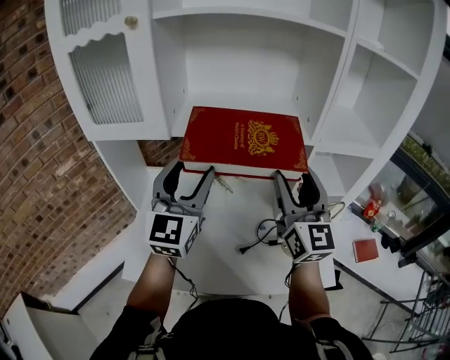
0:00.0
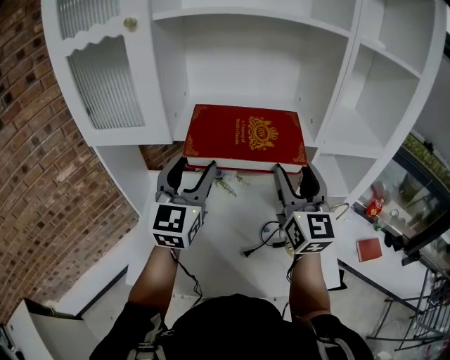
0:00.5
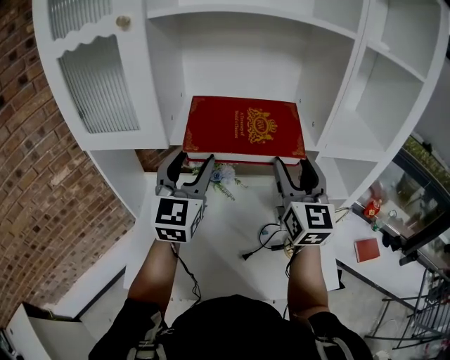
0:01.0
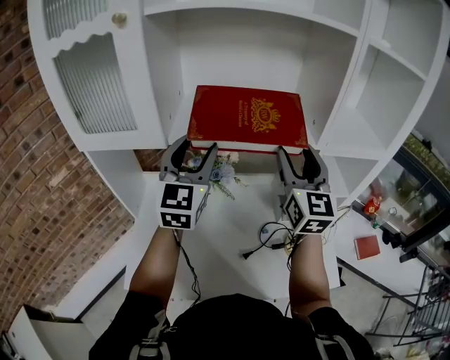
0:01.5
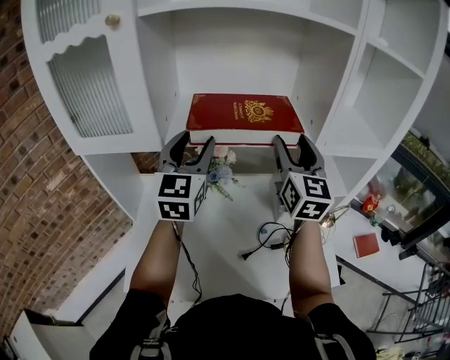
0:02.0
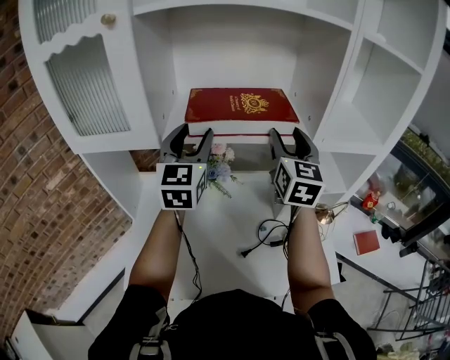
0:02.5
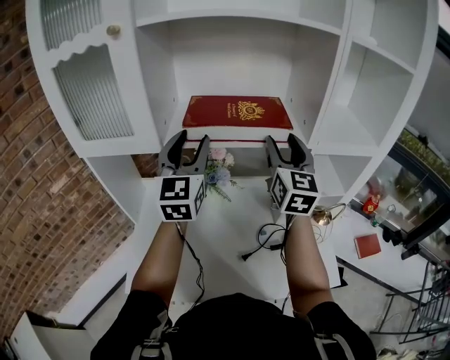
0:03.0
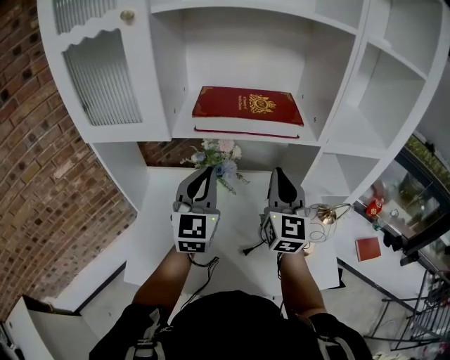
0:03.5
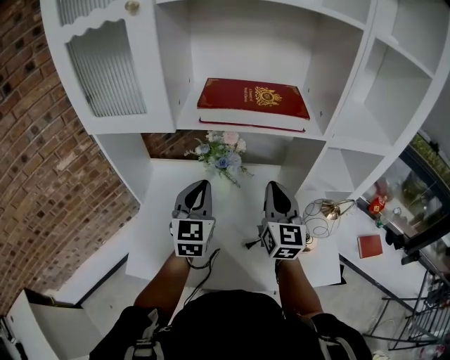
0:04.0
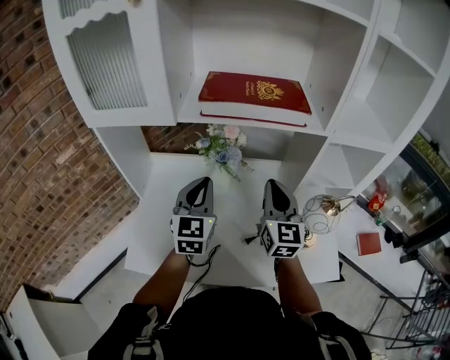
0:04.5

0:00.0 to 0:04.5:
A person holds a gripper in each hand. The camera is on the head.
0:00.0 to 0:02.0: The two grippers go roughly 15 cm forward.
0:02.0 to 0:04.5: The two grippers go roughly 20 cm downward and backward. The left gripper closes up, while the right gripper closes up.

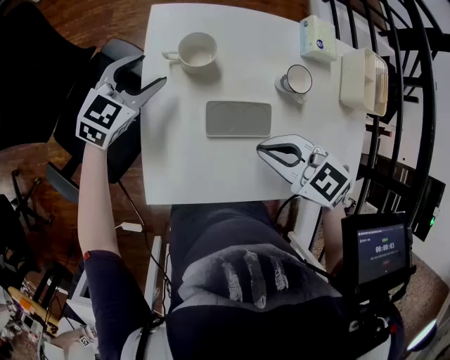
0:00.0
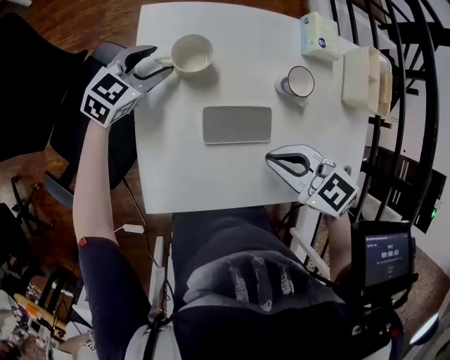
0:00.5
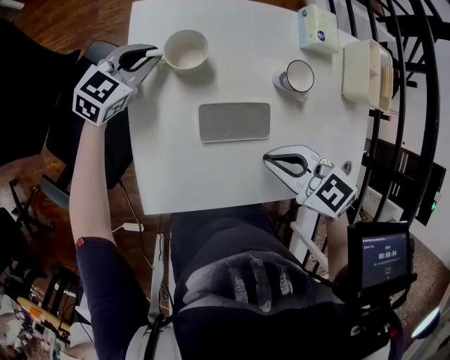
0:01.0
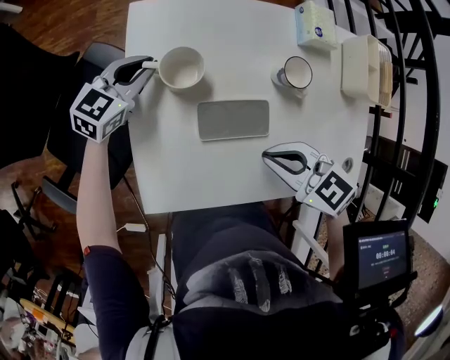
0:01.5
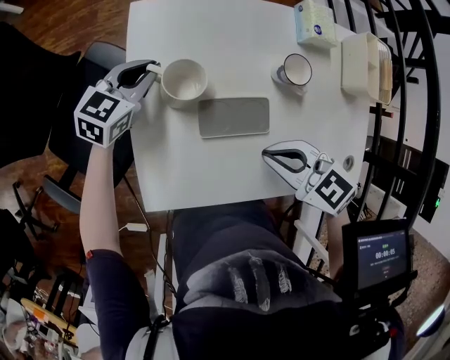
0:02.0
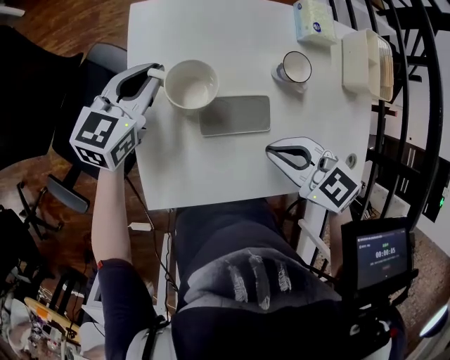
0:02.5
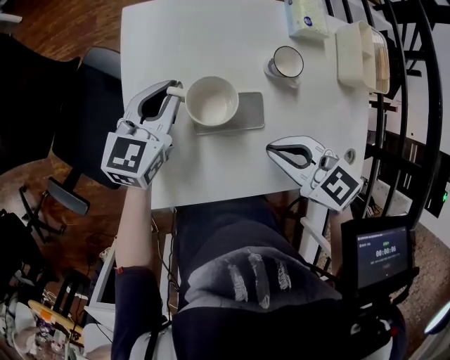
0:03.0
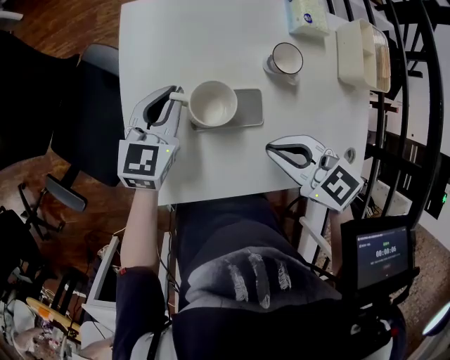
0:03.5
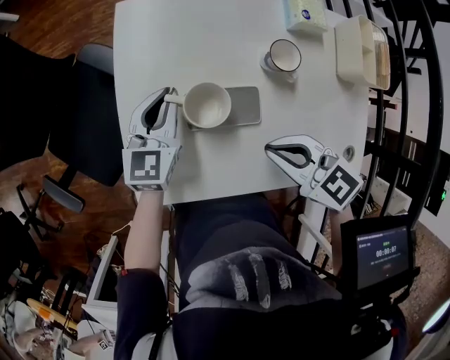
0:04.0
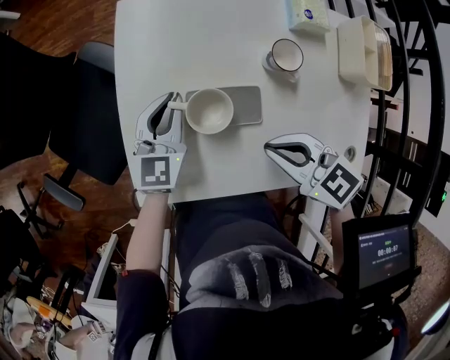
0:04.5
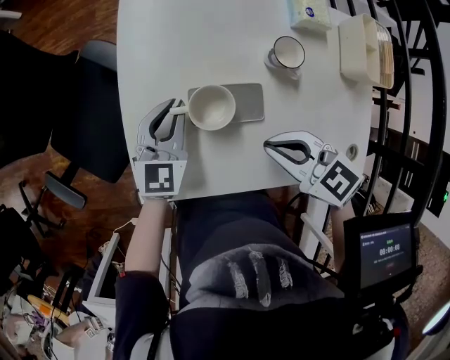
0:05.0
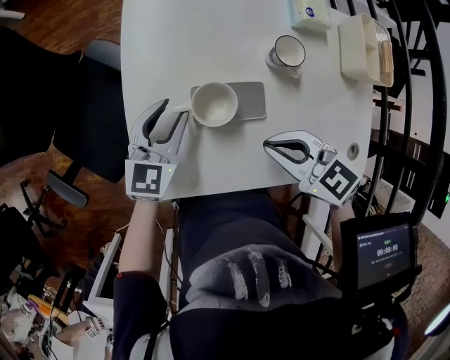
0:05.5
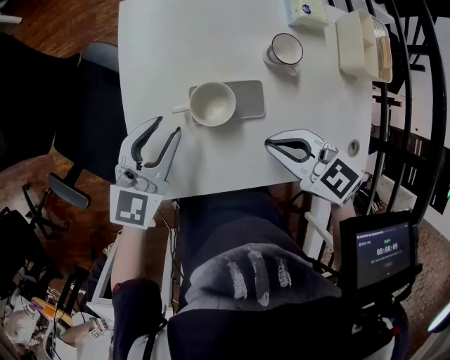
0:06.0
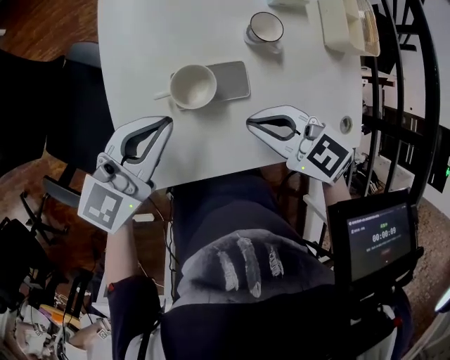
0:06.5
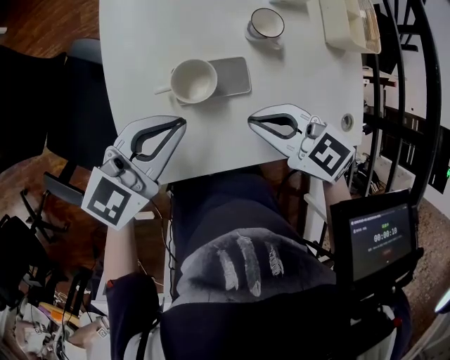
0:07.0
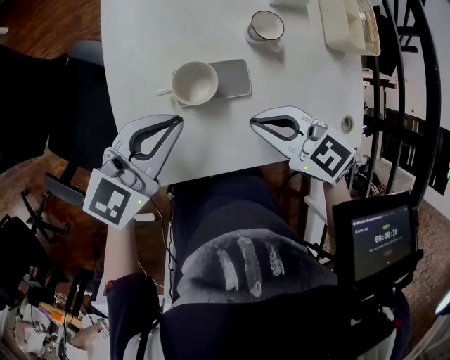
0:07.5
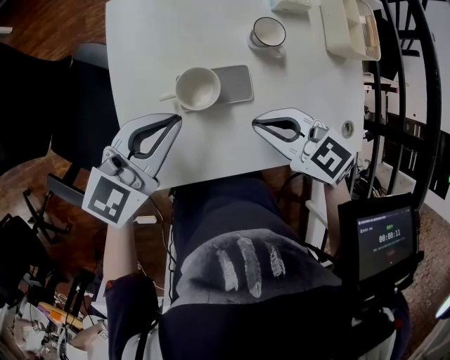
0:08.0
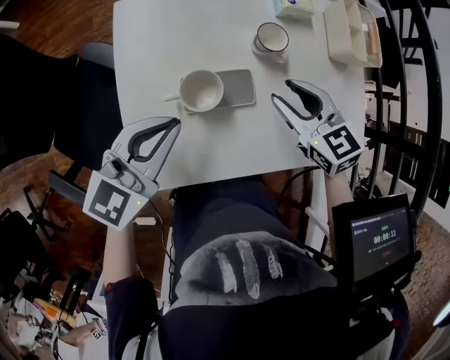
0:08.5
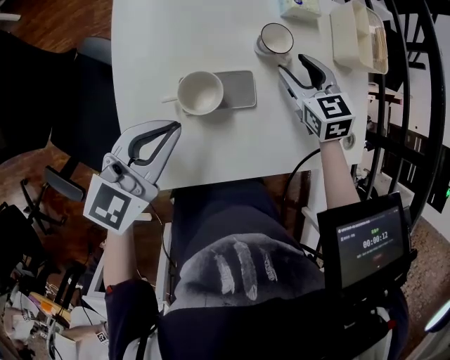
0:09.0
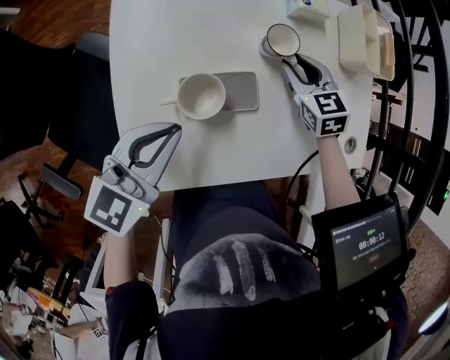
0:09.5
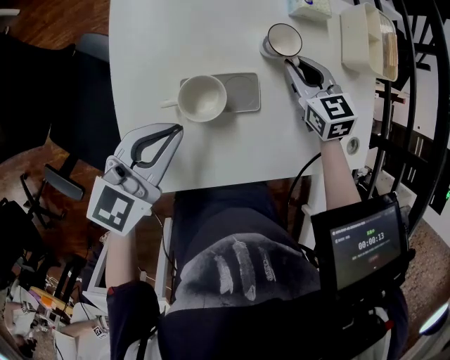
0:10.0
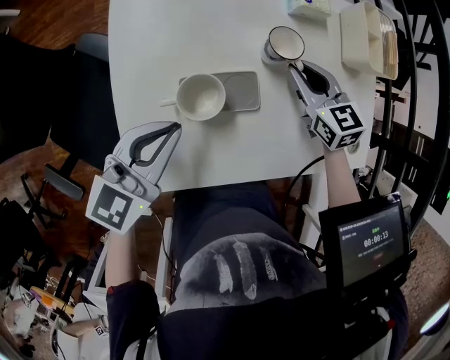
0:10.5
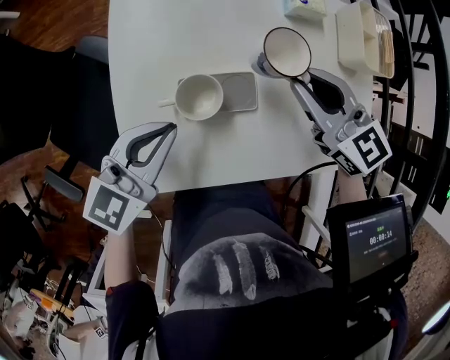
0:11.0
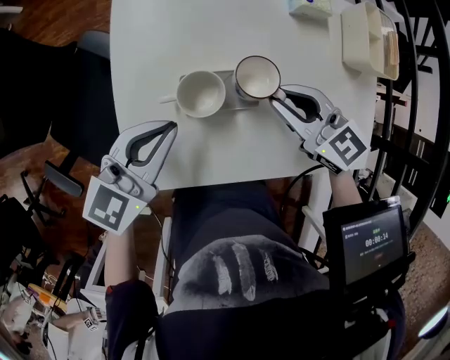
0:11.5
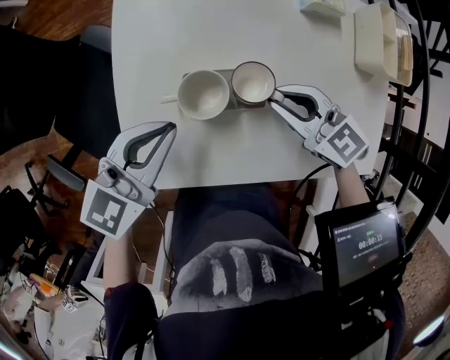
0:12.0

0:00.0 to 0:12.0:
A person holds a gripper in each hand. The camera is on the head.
0:00.0 to 0:02.0: The left gripper closes.
0:02.0 to 0:04.0: The left gripper travels backward by roughly 10 cm, and rotates about 30 degrees.
0:04.0 to 0:06.0: The left gripper heads backward, covering roughly 5 cm, and opens up.
0:06.0 to 0:08.0: The left gripper shifts by about 5 cm, and closes.
0:08.0 to 0:10.0: The right gripper heads forward and to the right, covering roughly 20 cm, changes its angle by some 30 degrees, and opens, then closes once more.
0:10.0 to 0:12.0: The right gripper shifts approximately 10 cm backward and to the left, reaches some 15 cm upward, then returns, and turns by some 30 degrees.

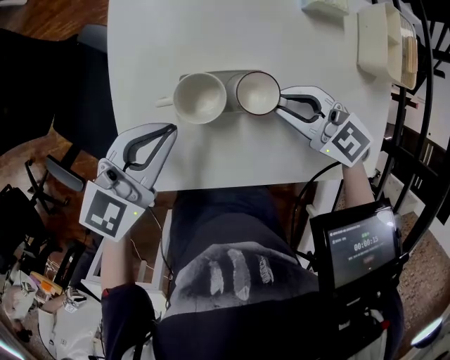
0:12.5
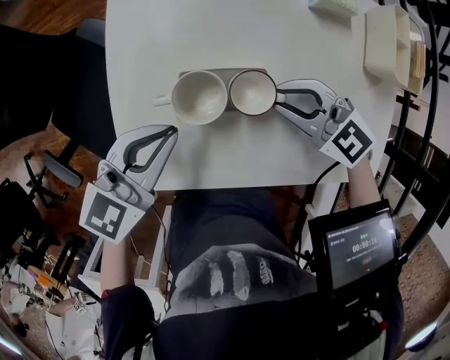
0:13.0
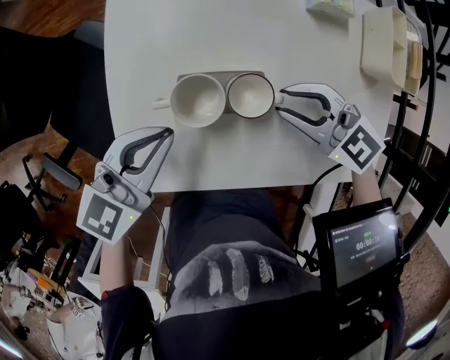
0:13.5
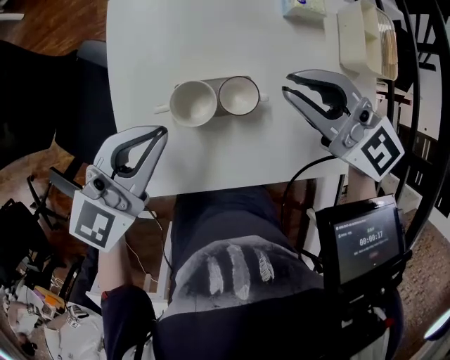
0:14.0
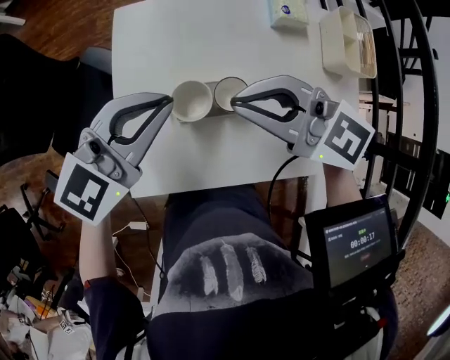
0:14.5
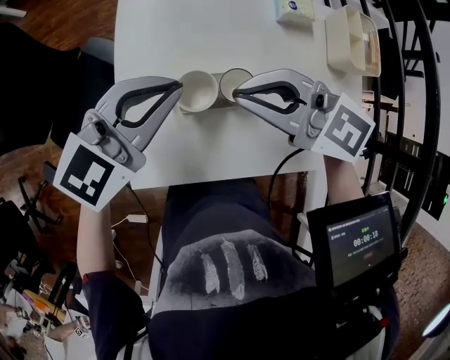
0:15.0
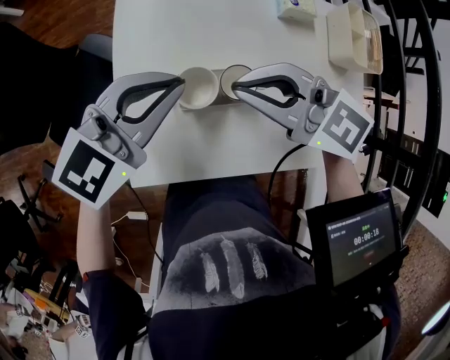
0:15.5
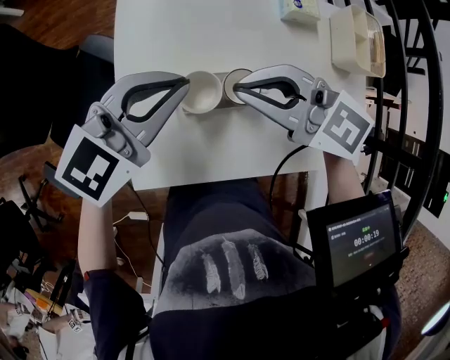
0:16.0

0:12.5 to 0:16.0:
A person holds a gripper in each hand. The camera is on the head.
0:12.5 to 0:14.5: The left gripper heads upward, covering about 10 cm. Meanwhile the right gripper is displaced upward by roughly 15 cm.
0:14.5 to 0:16.0: The grippers move only a little.

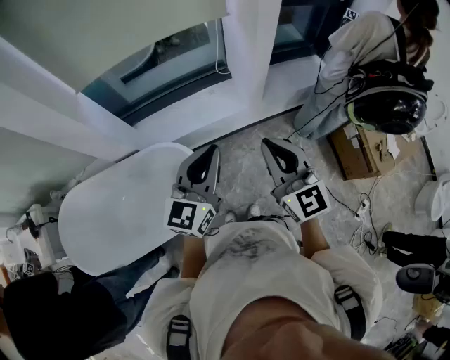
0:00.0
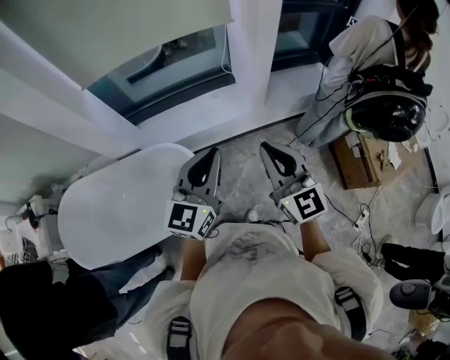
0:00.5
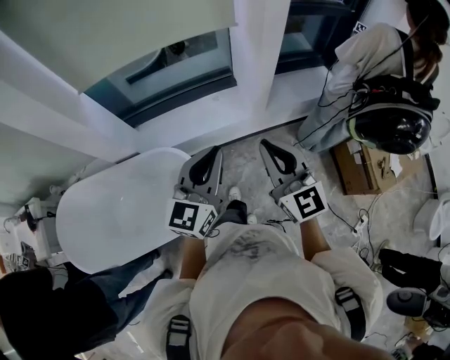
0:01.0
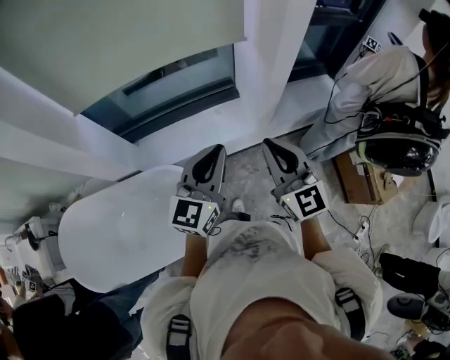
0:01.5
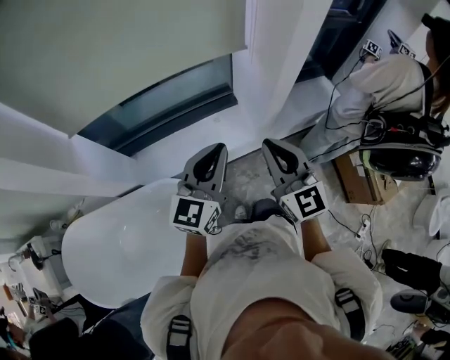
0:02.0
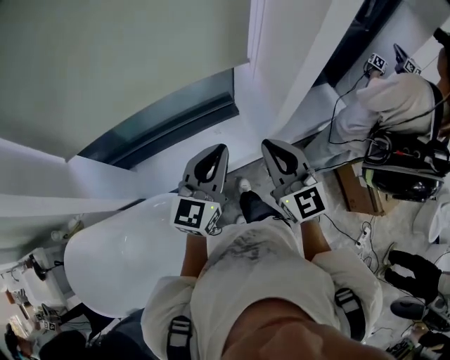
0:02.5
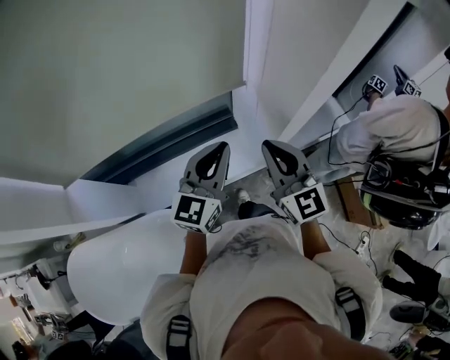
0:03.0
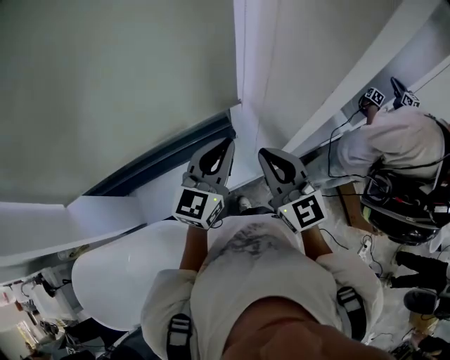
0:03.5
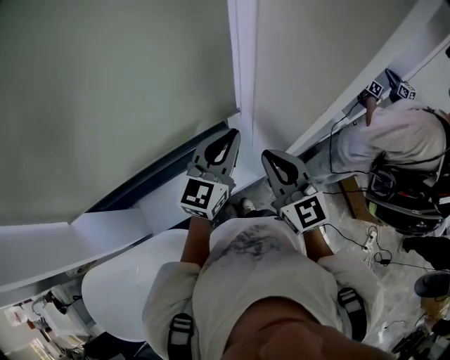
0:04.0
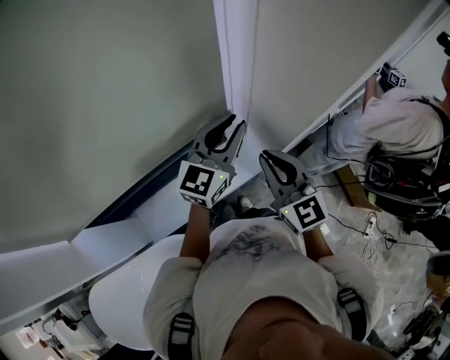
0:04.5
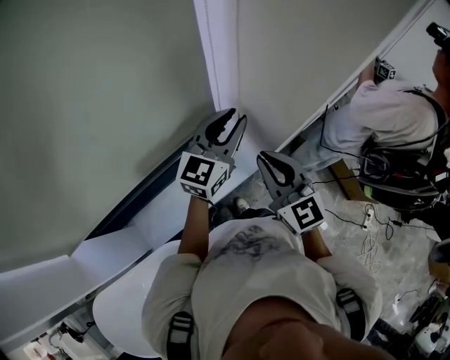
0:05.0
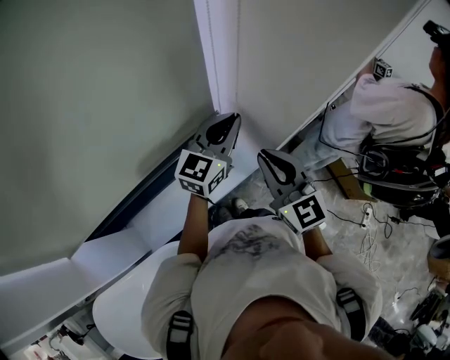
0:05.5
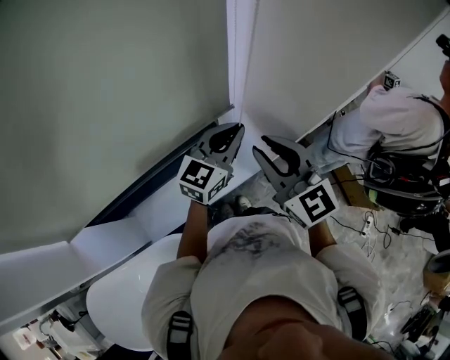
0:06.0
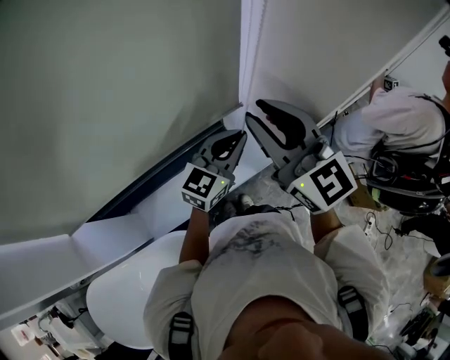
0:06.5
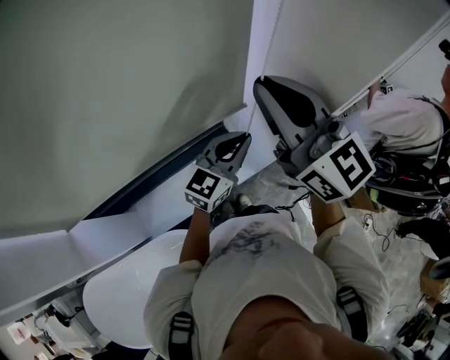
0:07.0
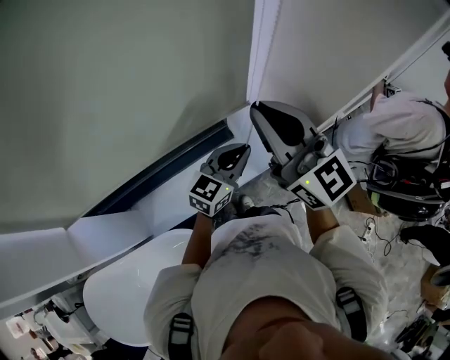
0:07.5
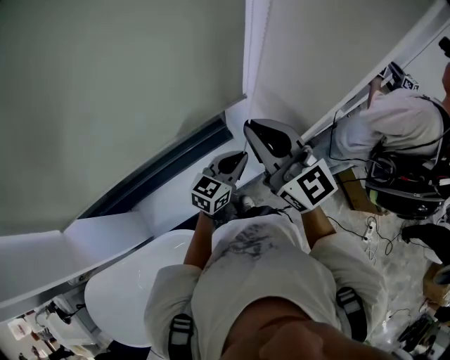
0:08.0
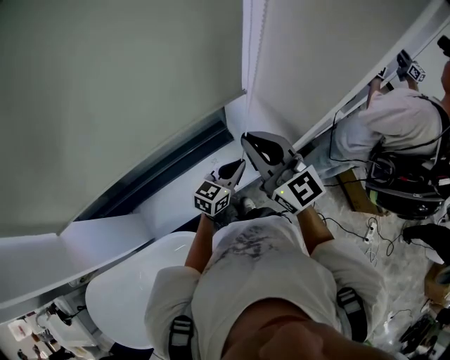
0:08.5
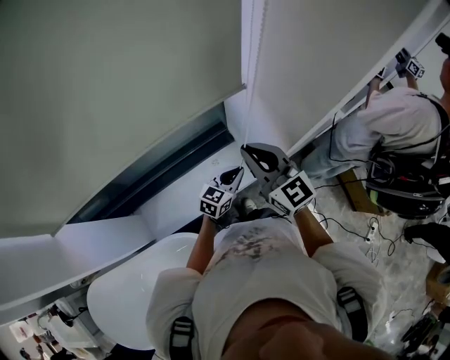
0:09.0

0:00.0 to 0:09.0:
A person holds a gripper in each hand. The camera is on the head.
0:00.0 to 0:02.0: The two grippers go about 20 cm forward.
0:02.0 to 0:04.5: Both grippers move forward, about 30 cm.
0:04.5 to 0:07.0: The left gripper shifts about 5 cm backward and downward. Meanwhile the right gripper travels upward by roughly 20 cm, and swivels about 20 degrees.
0:07.0 to 0:09.0: Both grippers move downward, roughly 20 cm.
